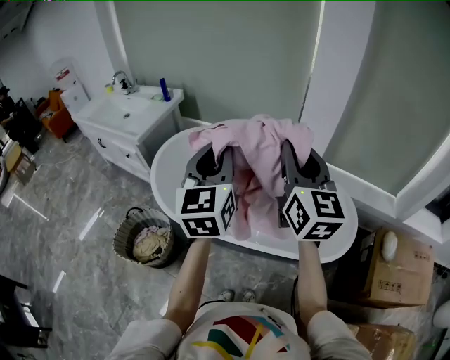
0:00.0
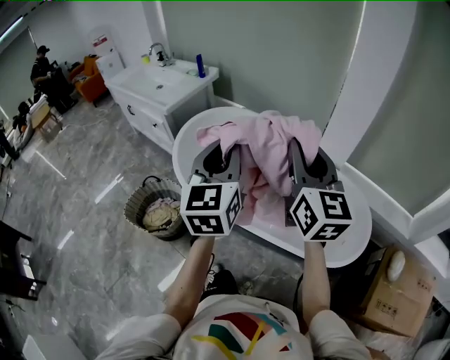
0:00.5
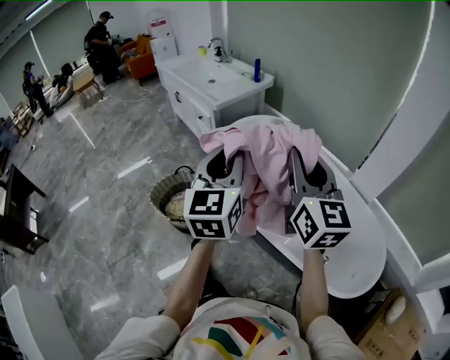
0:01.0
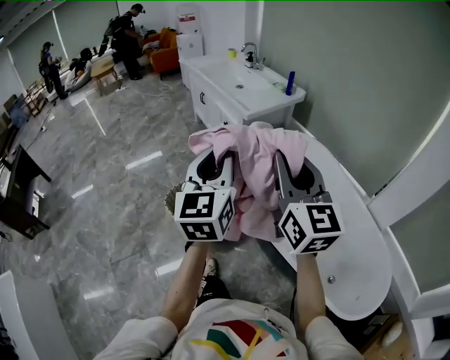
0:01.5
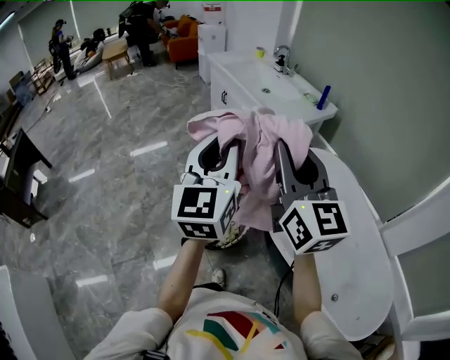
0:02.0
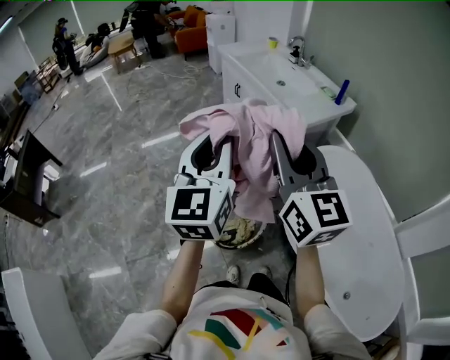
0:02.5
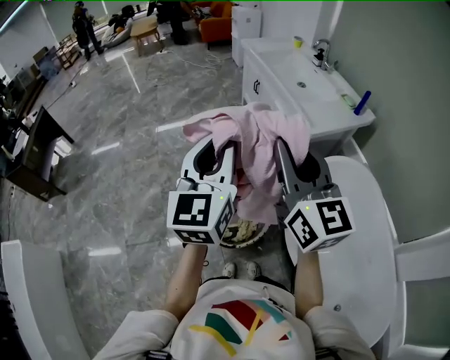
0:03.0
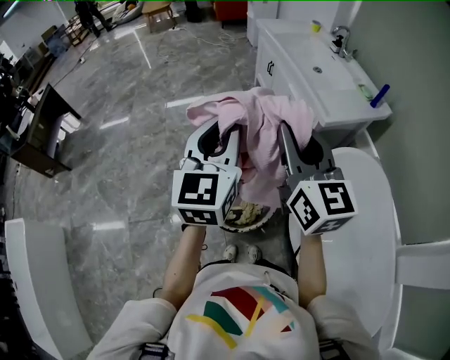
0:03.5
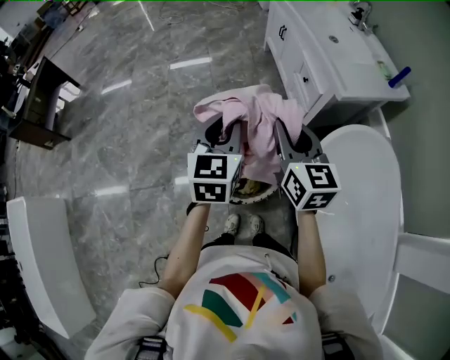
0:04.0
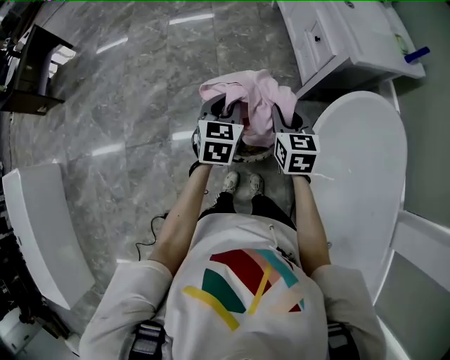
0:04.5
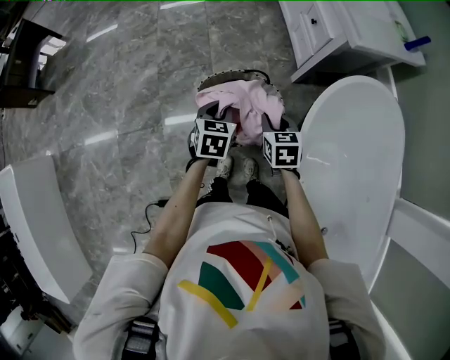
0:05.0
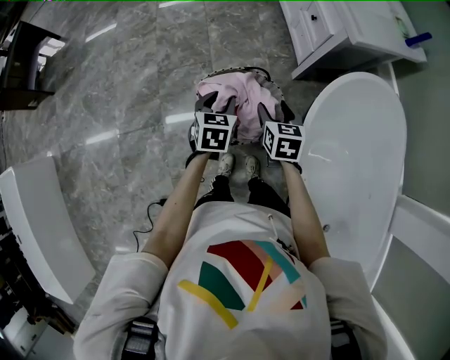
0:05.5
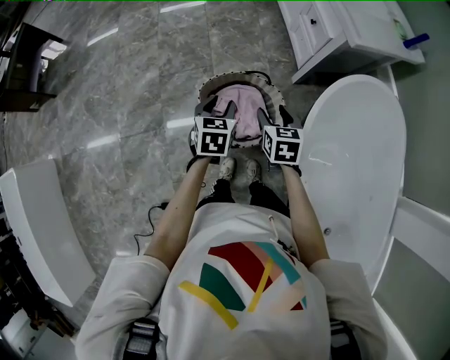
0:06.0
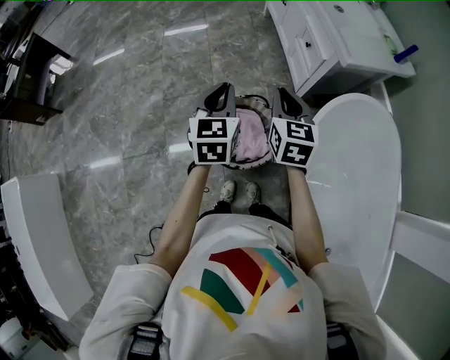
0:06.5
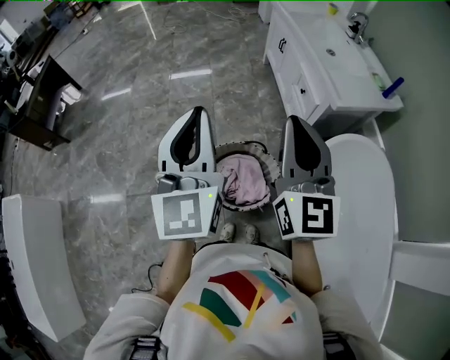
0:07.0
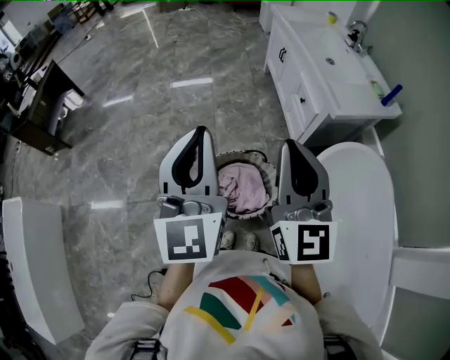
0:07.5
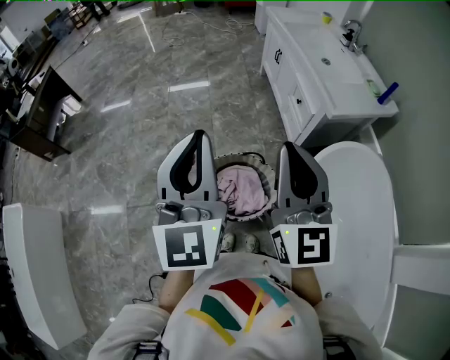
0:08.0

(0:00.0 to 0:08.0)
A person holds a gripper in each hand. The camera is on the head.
0:00.0 - 0:02.0: Both grippers are carried approximately 50 cm. The right gripper rotates some 50 degrees. The left gripper rotates some 40 degrees.
0:02.0 - 0:04.0: The left gripper is displaced downward, forward and to the left by approximately 25 cm, and turns by about 30 degrees. Meanwhile the right gripper moves downward and forward, roughly 25 cm, and turns by approximately 30 degrees.
0:04.0 - 0:06.0: Both grippers move downward, approximately 25 cm. The right gripper points its fingers some 30 degrees further downward, and opens its fingers; the left gripper turns by some 20 degrees.
0:06.0 - 0:08.0: Both grippers move upward, some 40 cm. The right gripper points its fingers approximately 50 degrees further upward, and closes its fingers. The left gripper tilts its fingers roughly 50 degrees upward, and closes.

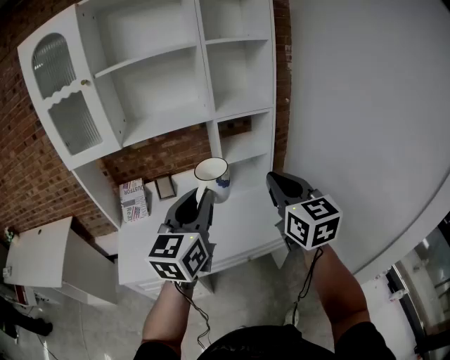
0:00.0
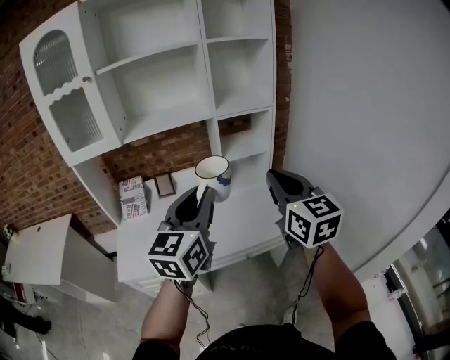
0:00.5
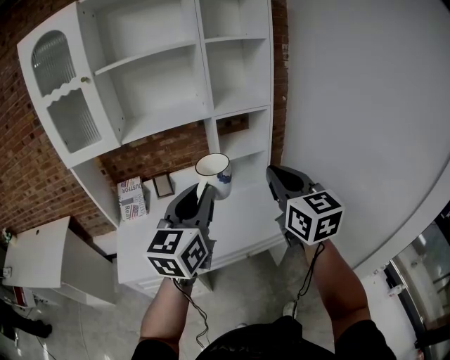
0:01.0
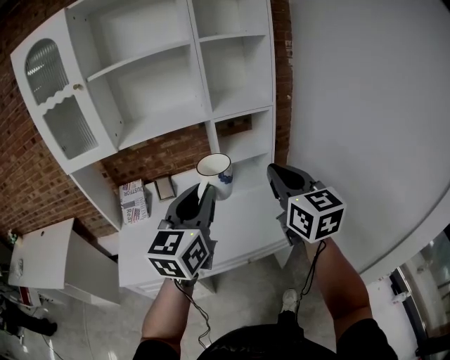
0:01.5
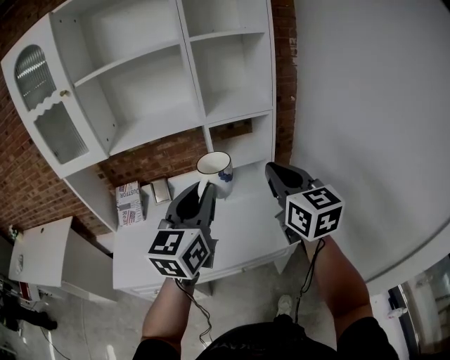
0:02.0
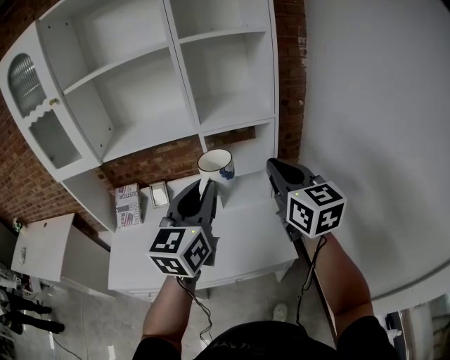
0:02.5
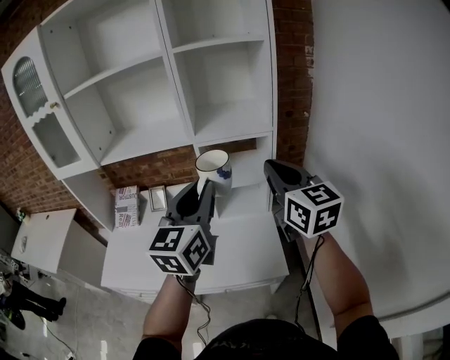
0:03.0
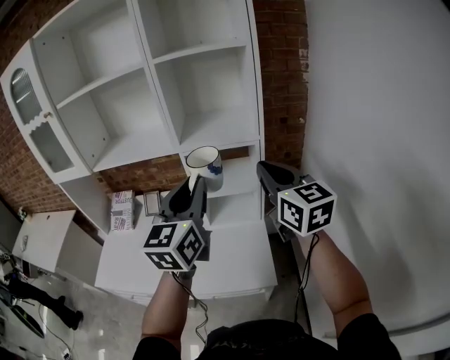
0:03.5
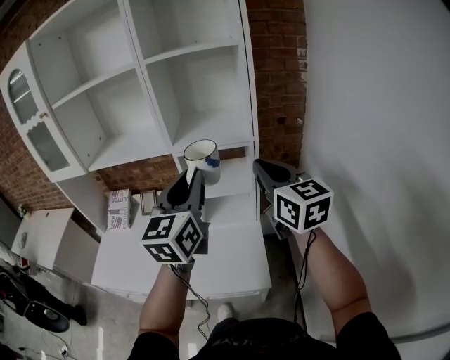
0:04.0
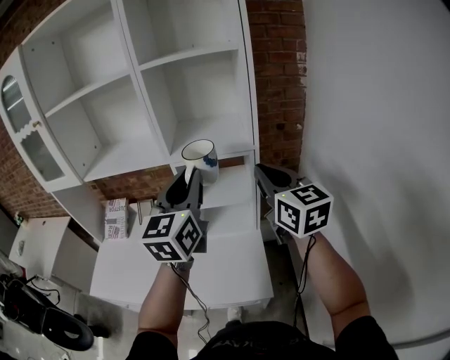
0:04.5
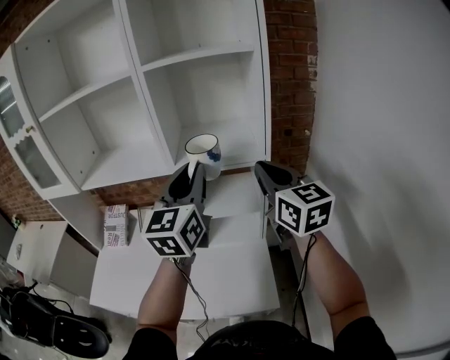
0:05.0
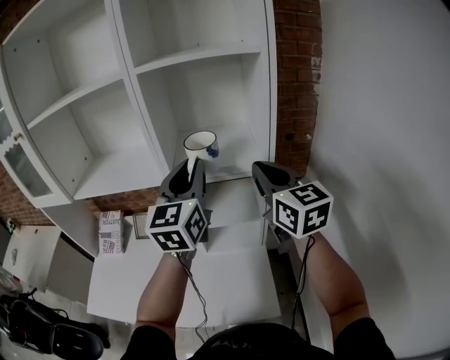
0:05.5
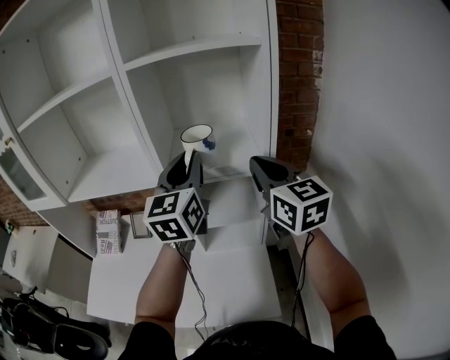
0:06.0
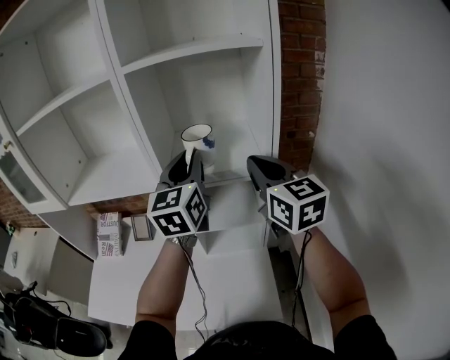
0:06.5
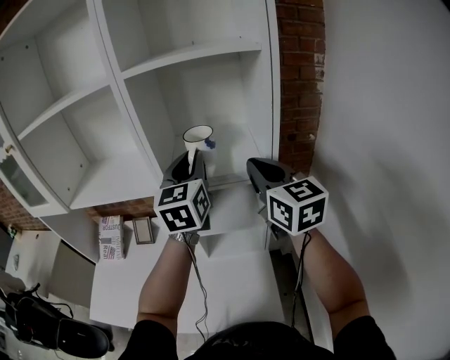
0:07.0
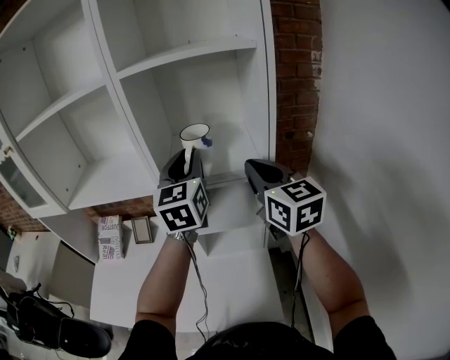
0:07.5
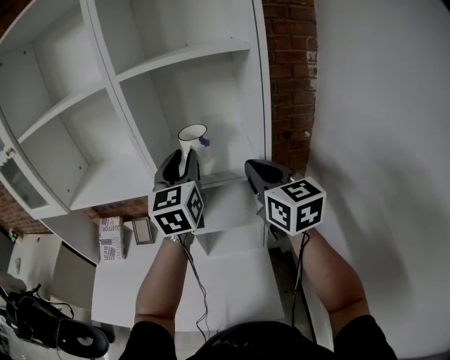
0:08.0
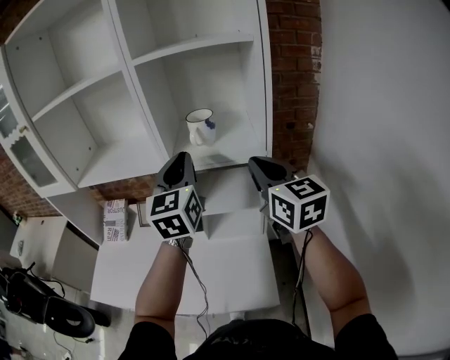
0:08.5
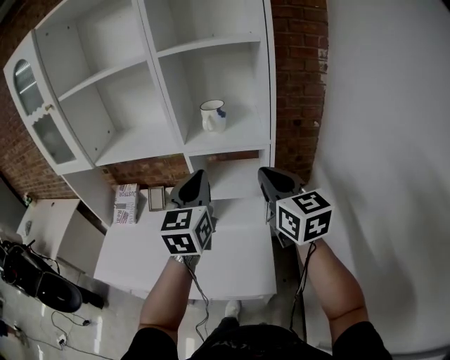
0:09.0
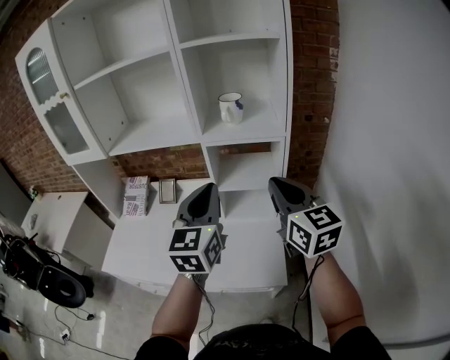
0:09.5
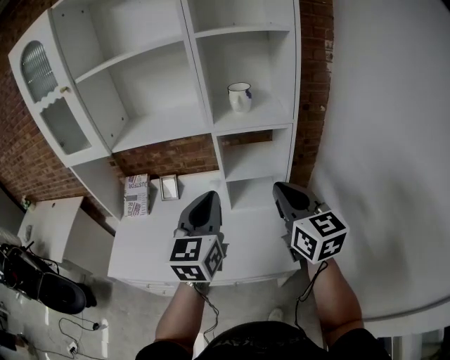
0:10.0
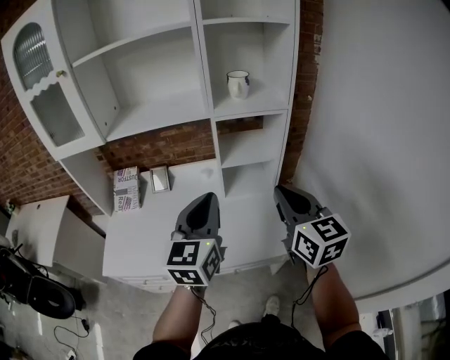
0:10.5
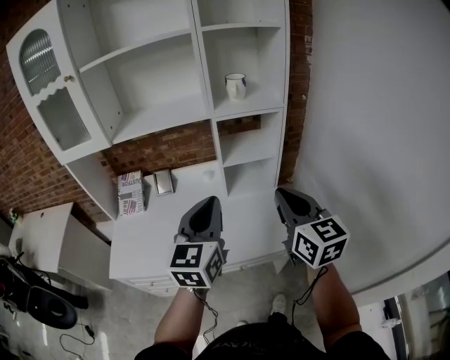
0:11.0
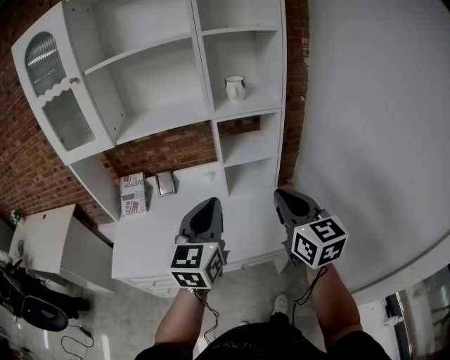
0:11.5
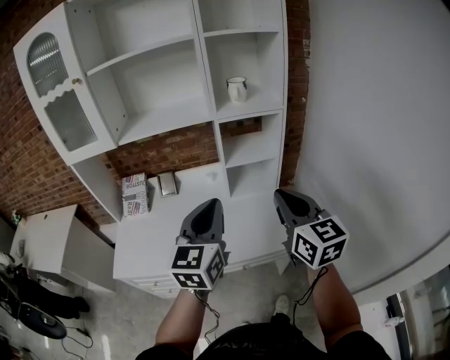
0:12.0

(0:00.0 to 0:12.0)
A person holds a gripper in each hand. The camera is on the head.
0:00.0 - 0:02.0: The two grippers go approximately 10 cm forward and to the right.
0:02.0 - 0:04.0: The right gripper is displaced forward and to the right by approximately 20 cm, while the left gripper moves to the right and forward, roughly 20 cm.
0:04.0 - 0:06.0: Both grippers travel together forward, roughly 20 cm.
0:06.0 - 0:08.0: The grippers stay close to where they were, moving slightly.
0:08.0 - 0:10.0: The two grippers go some 25 cm backward and to the left. The left gripper closes.
0:10.0 - 0:12.0: The grippers both shift backward and to the left by roughly 15 cm.

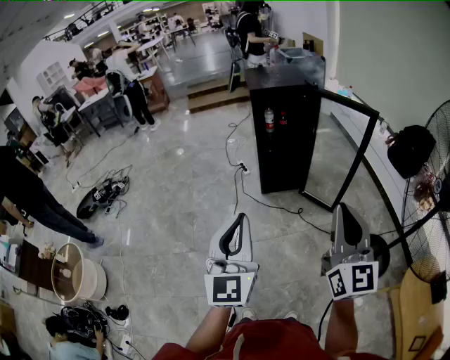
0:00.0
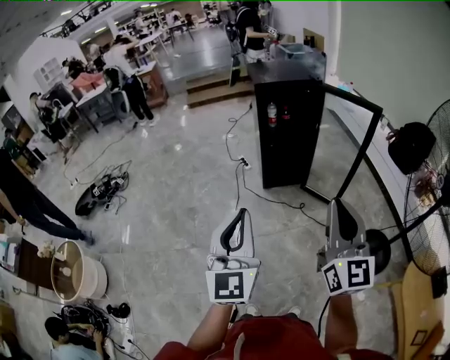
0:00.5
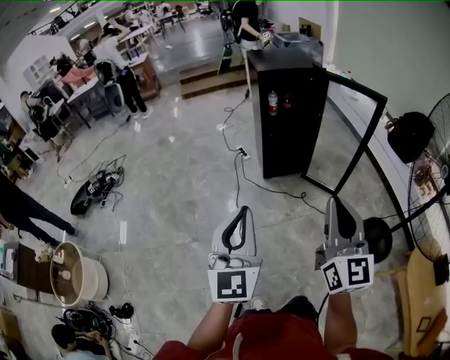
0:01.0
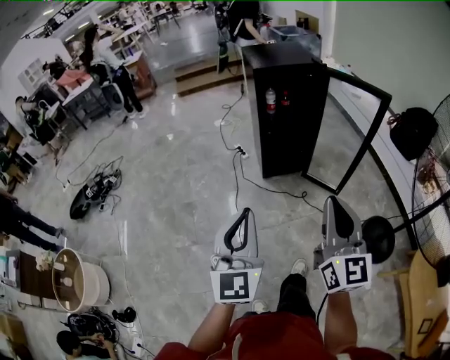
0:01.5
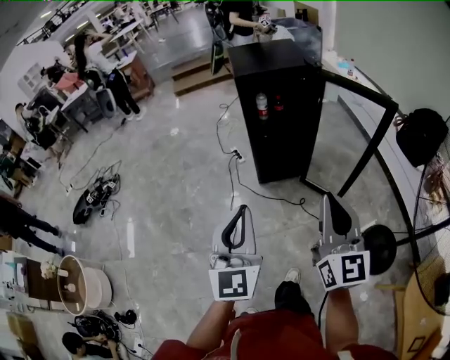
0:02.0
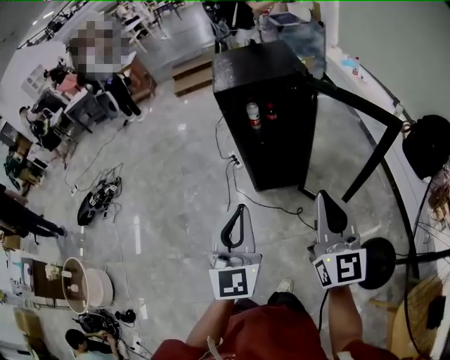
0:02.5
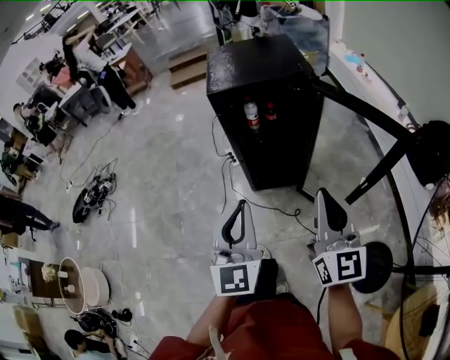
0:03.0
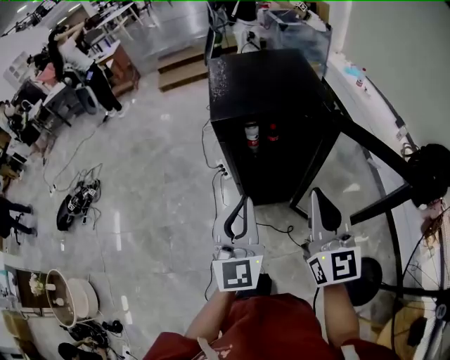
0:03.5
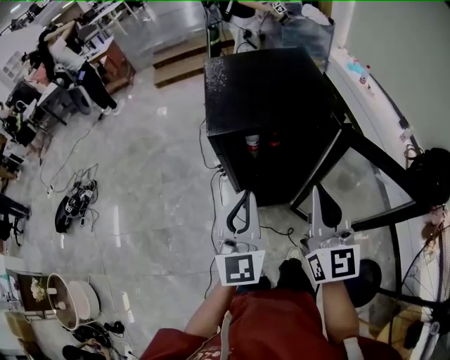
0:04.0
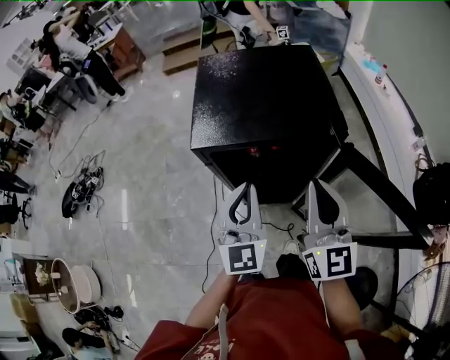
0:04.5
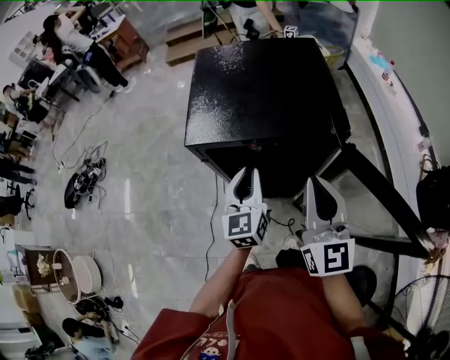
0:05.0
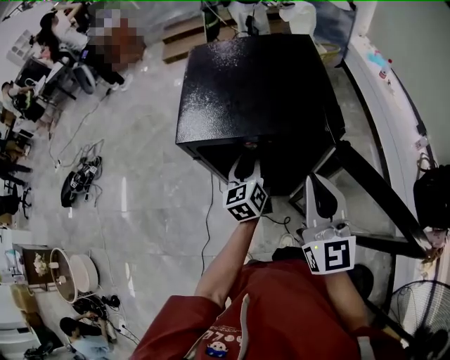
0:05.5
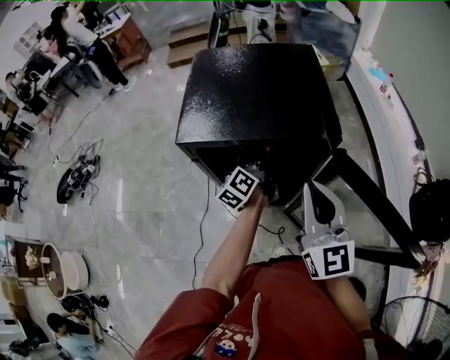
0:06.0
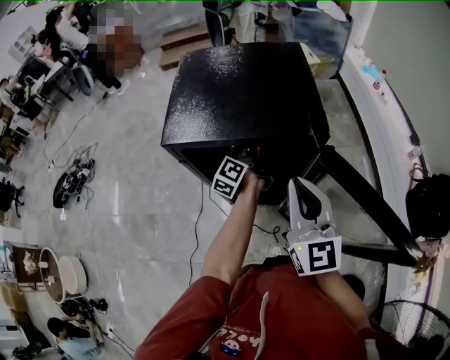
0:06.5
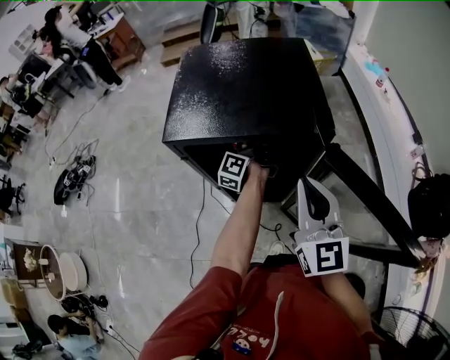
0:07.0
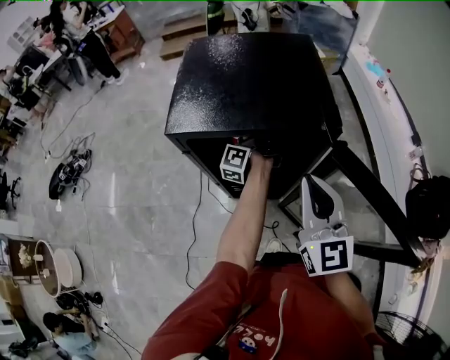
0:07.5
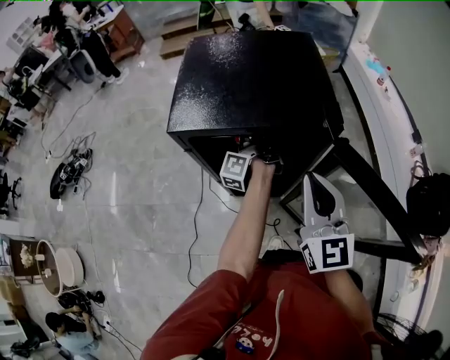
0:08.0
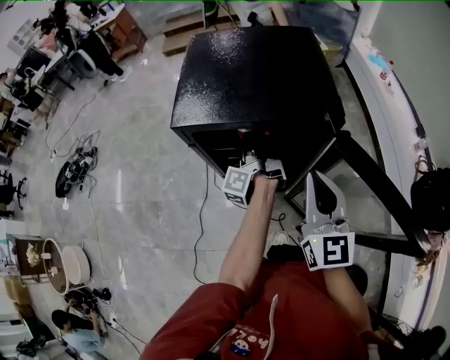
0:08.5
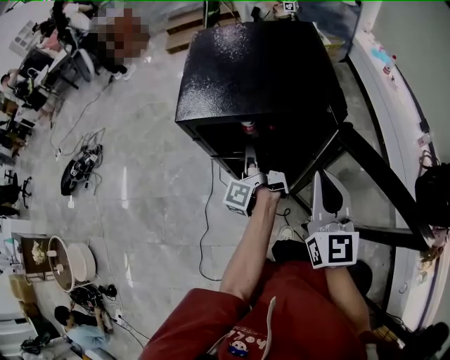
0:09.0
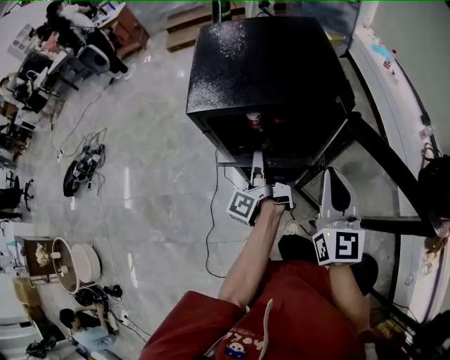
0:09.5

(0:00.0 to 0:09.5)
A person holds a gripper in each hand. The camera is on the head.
0:00.0 - 0:02.0: Both grippers move forward, roughly 20 cm.
0:02.0 - 0:04.0: The two grippers travel together, forward, roughly 40 cm.
0:04.0 - 0:05.5: The right gripper shifts roughly 10 cm forward and to the right. Meanwhile the left gripper goes about 25 cm forward, downward and to the right, rotates approximately 40 degrees, and opens.
0:05.5 - 0:07.5: The left gripper moves forward, roughly 10 cm, twists about 60 degrees counterclockwise, seen from behind, and closes up.
0:07.5 - 0:09.5: The left gripper is displaced backward by roughly 20 cm.
